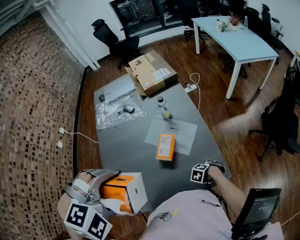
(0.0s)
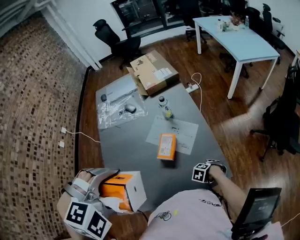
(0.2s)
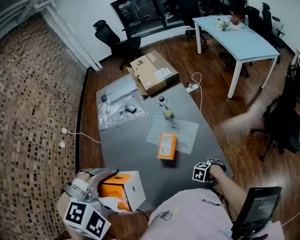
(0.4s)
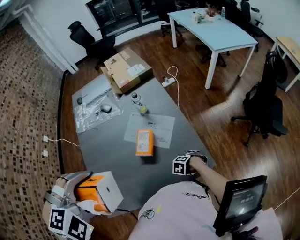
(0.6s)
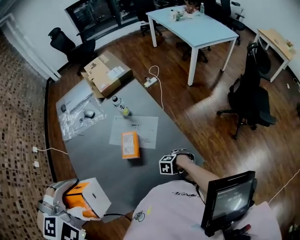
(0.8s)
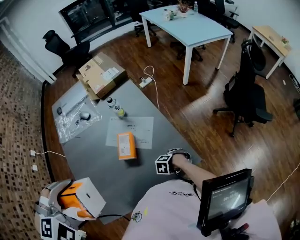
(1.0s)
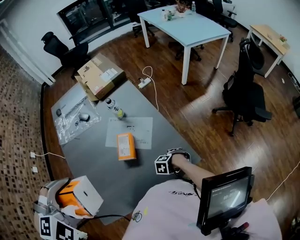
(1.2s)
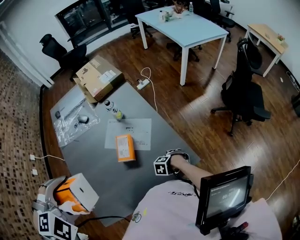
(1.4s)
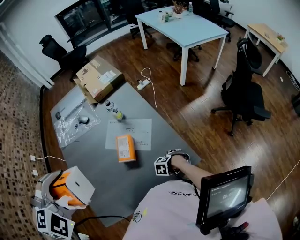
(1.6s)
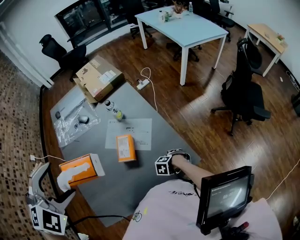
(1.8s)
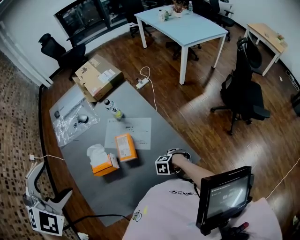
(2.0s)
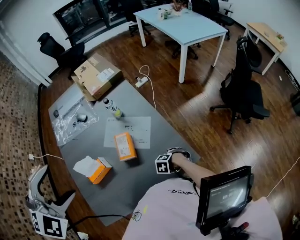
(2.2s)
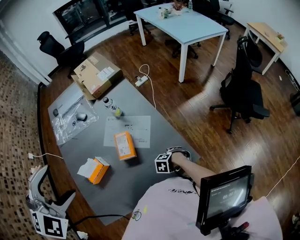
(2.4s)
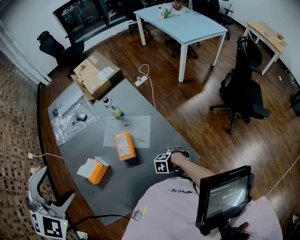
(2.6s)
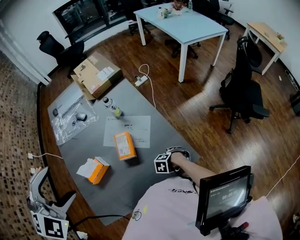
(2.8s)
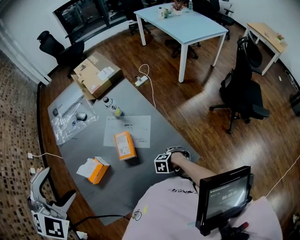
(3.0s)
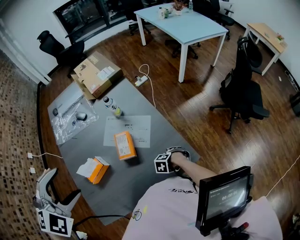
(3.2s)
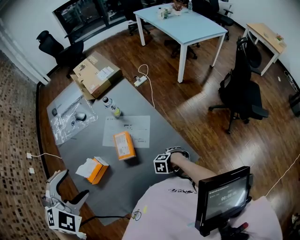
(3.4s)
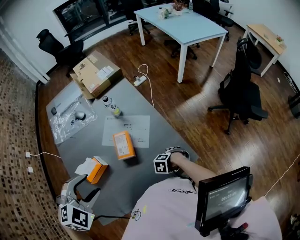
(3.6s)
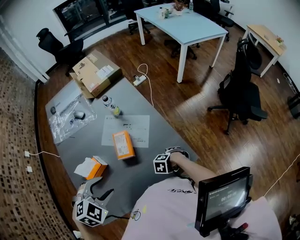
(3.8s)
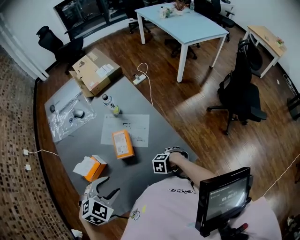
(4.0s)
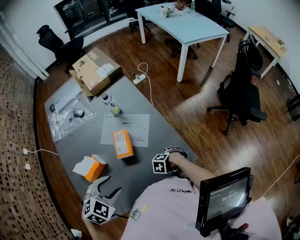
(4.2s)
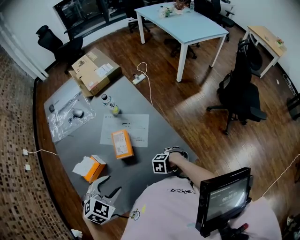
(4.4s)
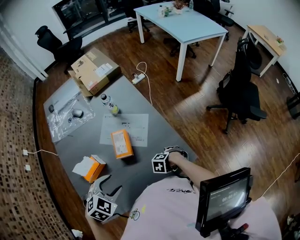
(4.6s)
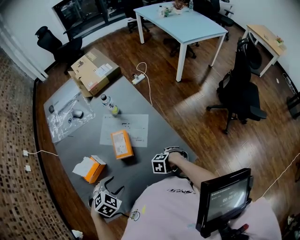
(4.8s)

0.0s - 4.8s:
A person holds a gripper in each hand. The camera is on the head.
0.0s - 1.6s: The left gripper ends up roughly 5 cm from where it was.
3.2s - 4.8s: The left gripper goes roughly 30 cm downward, and changes its angle by roughly 30 degrees.

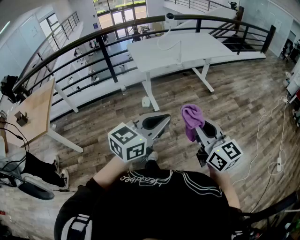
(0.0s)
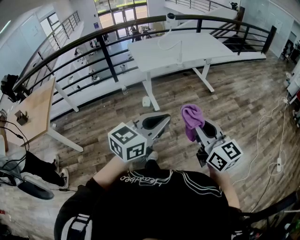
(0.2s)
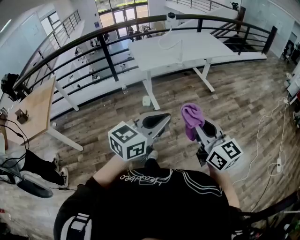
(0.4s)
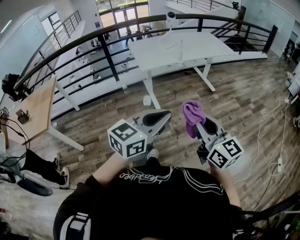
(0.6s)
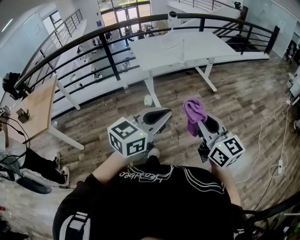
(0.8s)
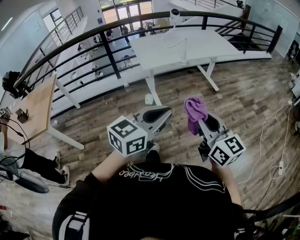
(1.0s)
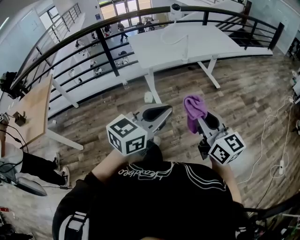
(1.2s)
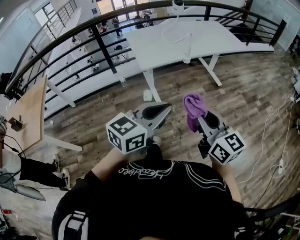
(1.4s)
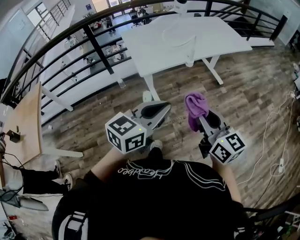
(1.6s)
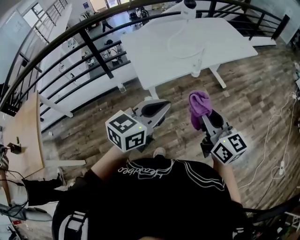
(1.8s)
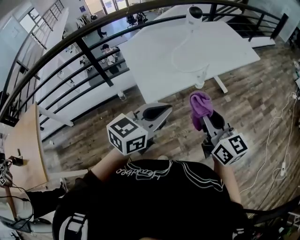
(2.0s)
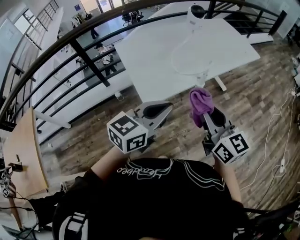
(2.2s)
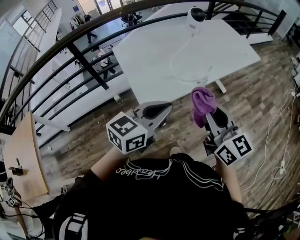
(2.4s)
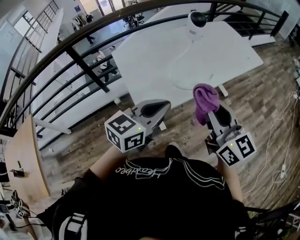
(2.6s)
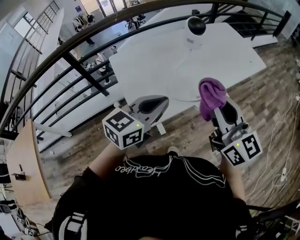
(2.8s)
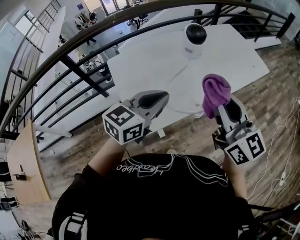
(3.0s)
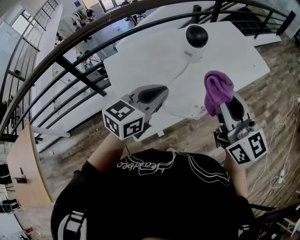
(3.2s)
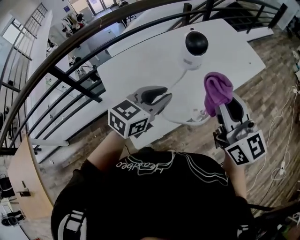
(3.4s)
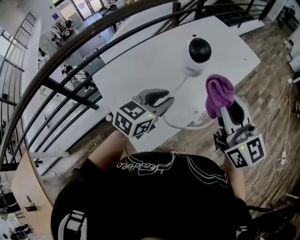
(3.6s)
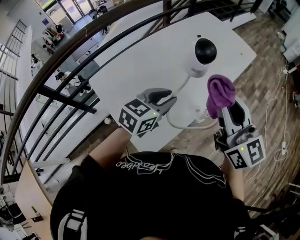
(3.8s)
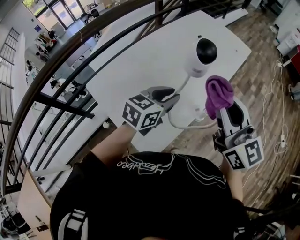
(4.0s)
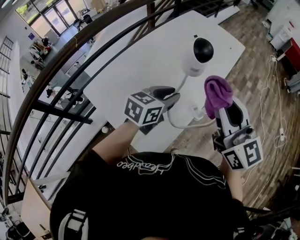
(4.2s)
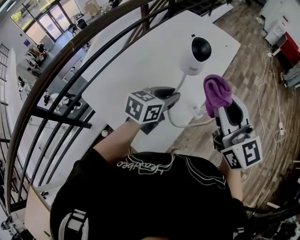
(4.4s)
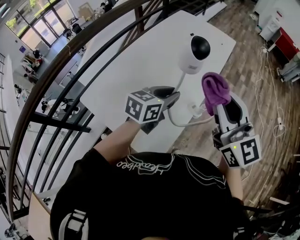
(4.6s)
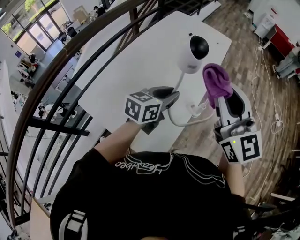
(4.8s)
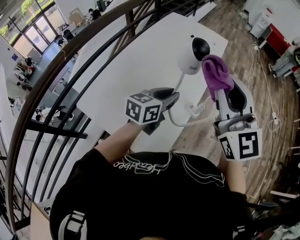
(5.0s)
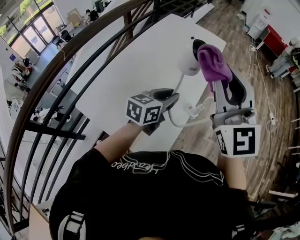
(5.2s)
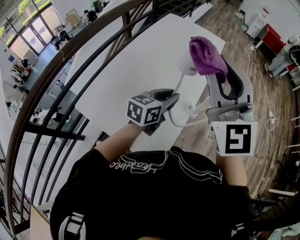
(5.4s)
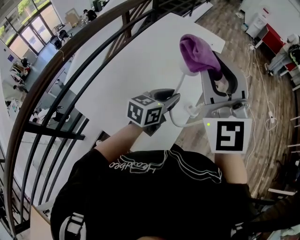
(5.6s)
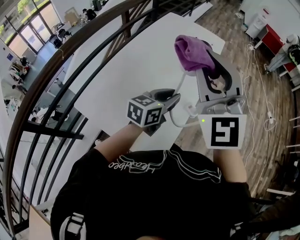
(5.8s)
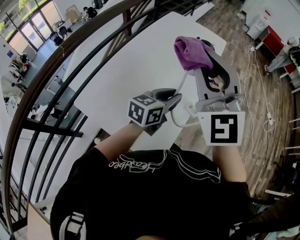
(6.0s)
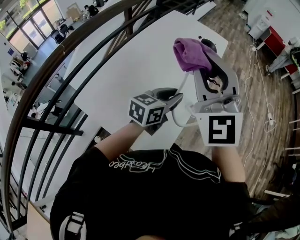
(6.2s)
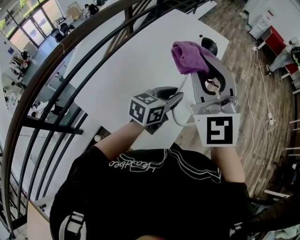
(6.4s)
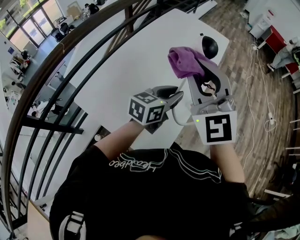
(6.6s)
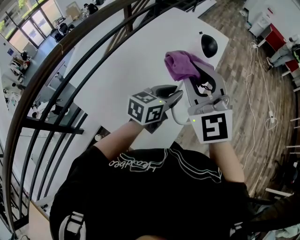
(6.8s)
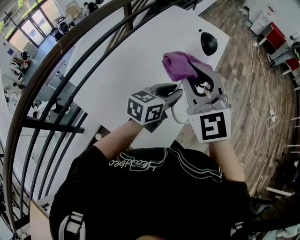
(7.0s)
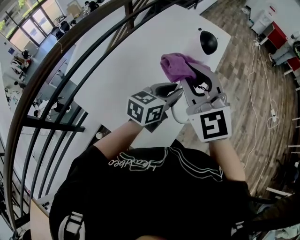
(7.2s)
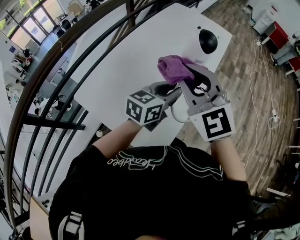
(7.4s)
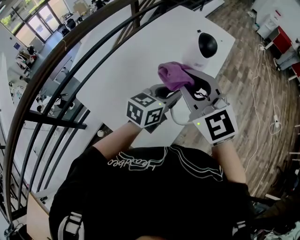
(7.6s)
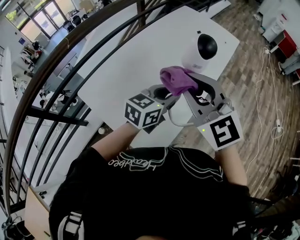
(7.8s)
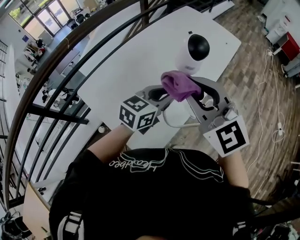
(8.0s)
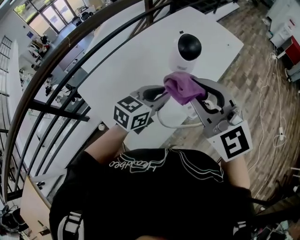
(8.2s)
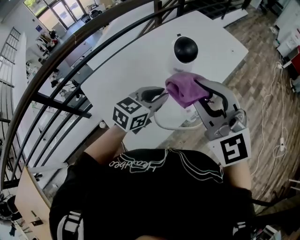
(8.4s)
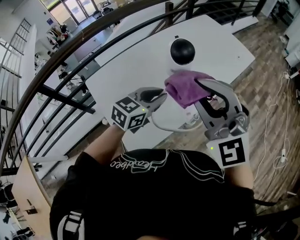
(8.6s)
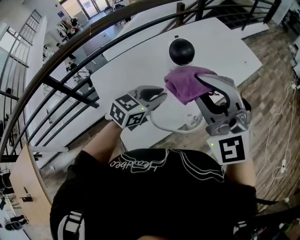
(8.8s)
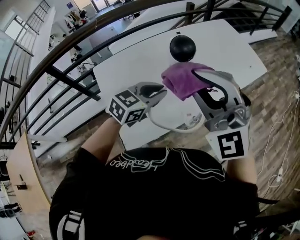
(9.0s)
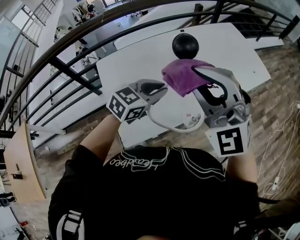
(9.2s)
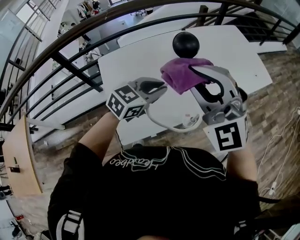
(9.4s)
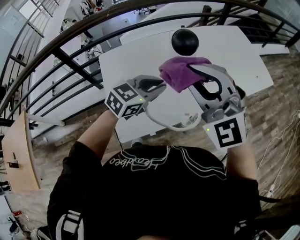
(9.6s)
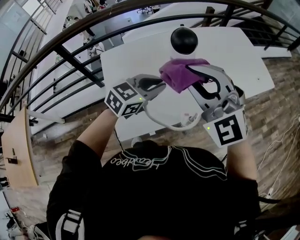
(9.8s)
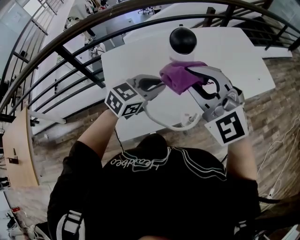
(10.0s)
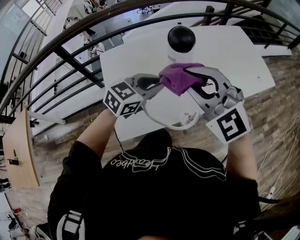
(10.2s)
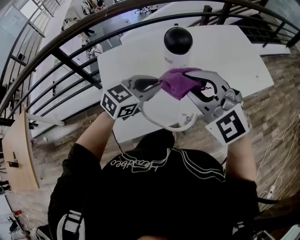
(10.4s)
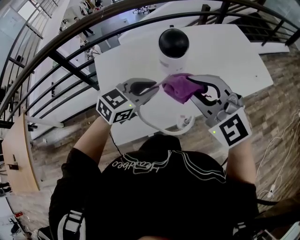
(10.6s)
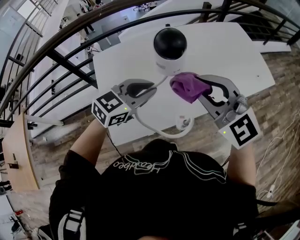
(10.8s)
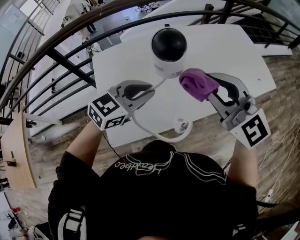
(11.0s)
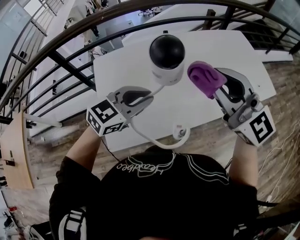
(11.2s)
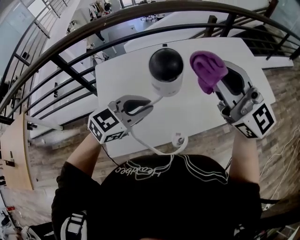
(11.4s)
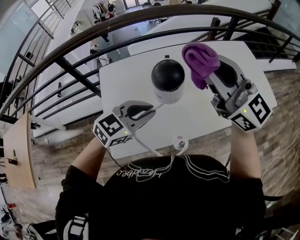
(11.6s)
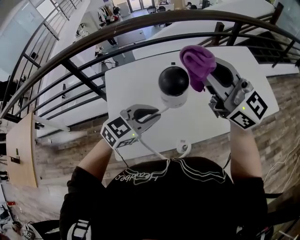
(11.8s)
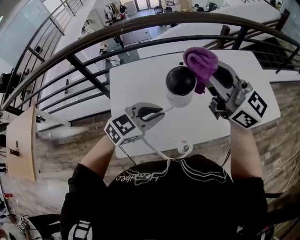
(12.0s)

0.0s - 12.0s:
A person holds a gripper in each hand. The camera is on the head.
0.0s - 1.6s: Both grippers travel together forward, some 30 cm.
1.6s - 3.0s: The two grippers travel together, forward, roughly 50 cm.
3.0s - 4.4s: The right gripper ends up approximately 10 cm from where it was, and swivels about 30 degrees. The left gripper shifts by roughly 15 cm, and rotates roughly 30 degrees.
4.4s - 6.0s: The right gripper heads to the left and upward, covering approximately 15 cm, and changes its angle by approximately 40 degrees.
6.0s - 7.6s: The right gripper travels downward by roughly 10 cm, and rotates about 30 degrees.
7.6s - 9.0s: The right gripper shifts by about 10 cm, and rotates some 40 degrees. Meanwhile the left gripper turns by approximately 20 degrees.
9.0s - 10.4s: The right gripper goes approximately 10 cm downward, and turns by about 20 degrees.
10.4s - 12.0s: The right gripper is displaced forward and upward by some 15 cm, and angles its fingers upward, by approximately 30 degrees.

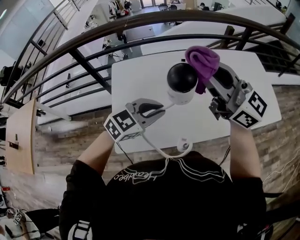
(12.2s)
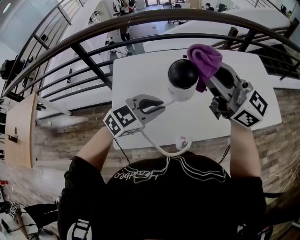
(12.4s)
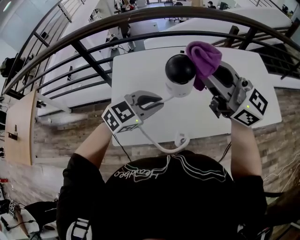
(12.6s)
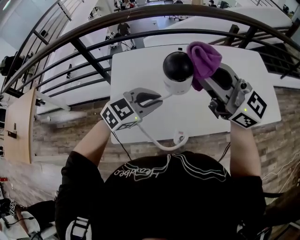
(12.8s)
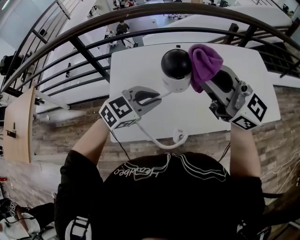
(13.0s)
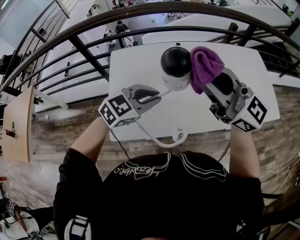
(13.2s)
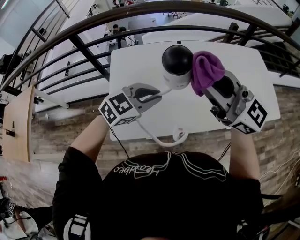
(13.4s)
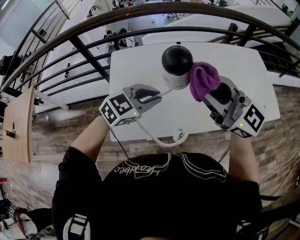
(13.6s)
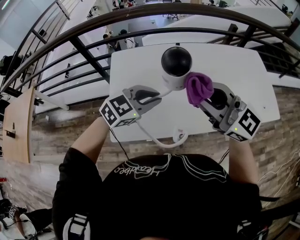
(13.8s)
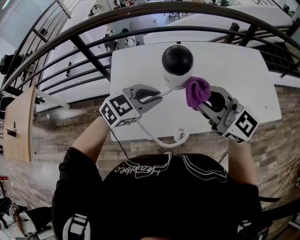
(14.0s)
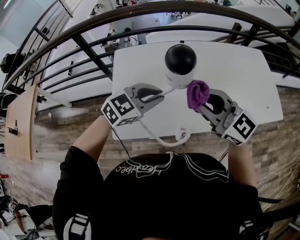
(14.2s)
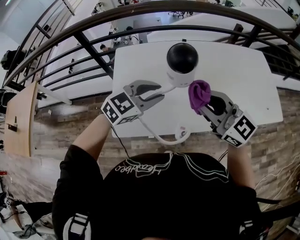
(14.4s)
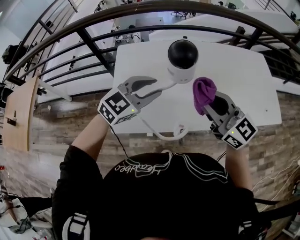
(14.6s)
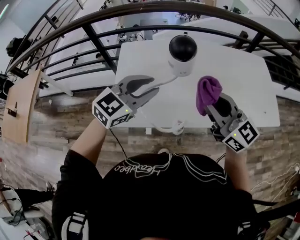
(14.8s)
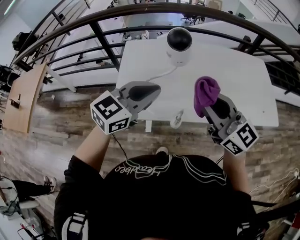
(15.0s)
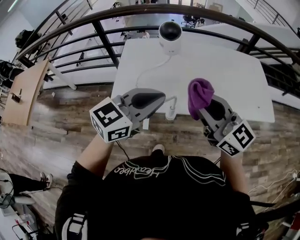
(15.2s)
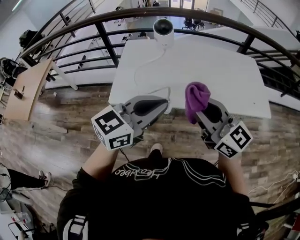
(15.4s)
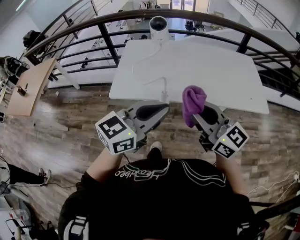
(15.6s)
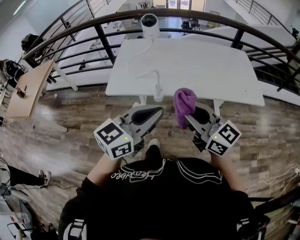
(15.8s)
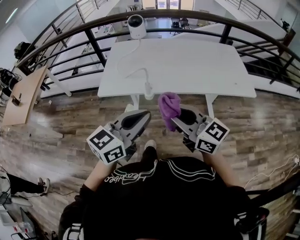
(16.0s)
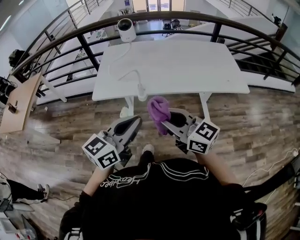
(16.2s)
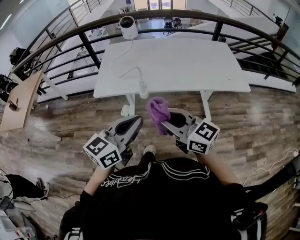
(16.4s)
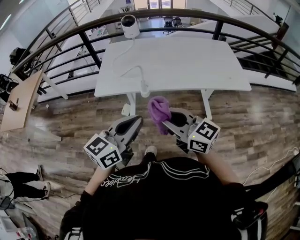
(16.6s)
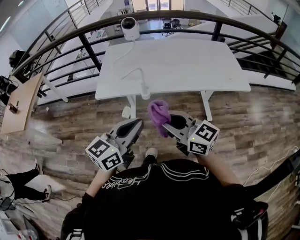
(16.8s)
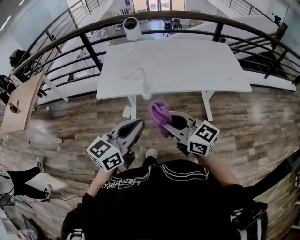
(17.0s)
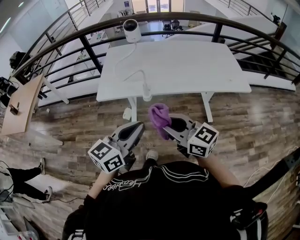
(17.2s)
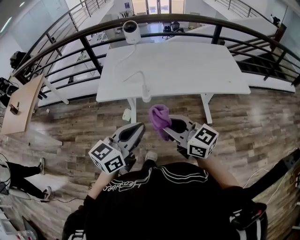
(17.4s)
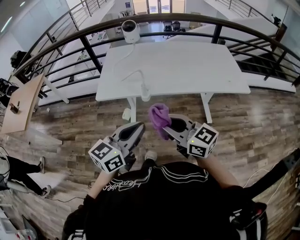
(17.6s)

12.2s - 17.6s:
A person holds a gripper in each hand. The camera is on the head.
12.2s - 13.6s: The right gripper travels backward by approximately 5 cm.
13.6s - 15.0s: The right gripper shifts approximately 10 cm backward, while the left gripper goes about 15 cm backward and upward, and changes its angle by some 30 degrees.
15.0s - 16.2s: The two grippers go roughly 30 cm backward. The left gripper swivels some 20 degrees.
16.2s - 17.6s: There are only small adjustments of the grippers.

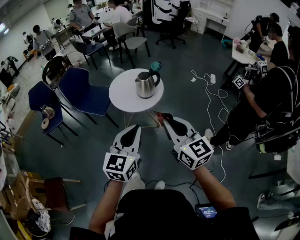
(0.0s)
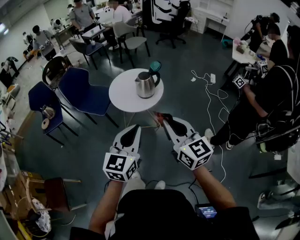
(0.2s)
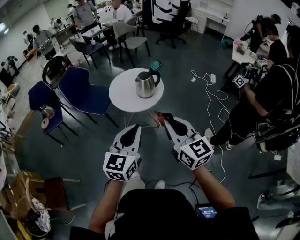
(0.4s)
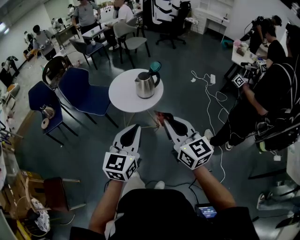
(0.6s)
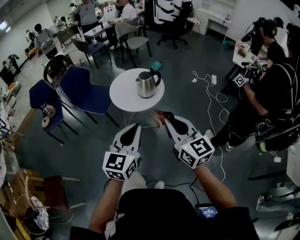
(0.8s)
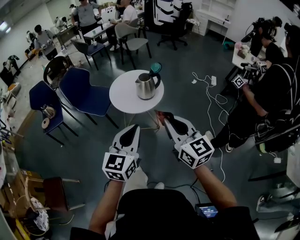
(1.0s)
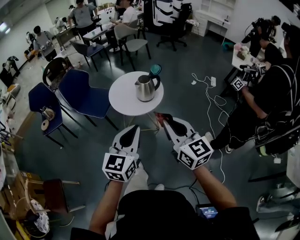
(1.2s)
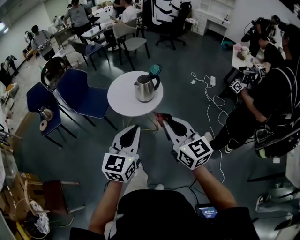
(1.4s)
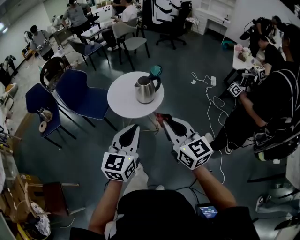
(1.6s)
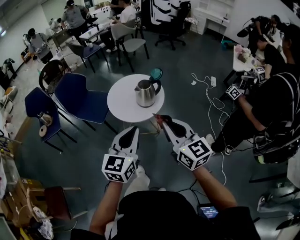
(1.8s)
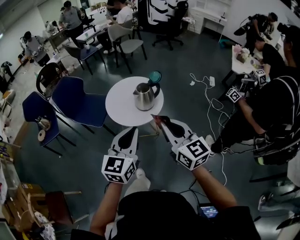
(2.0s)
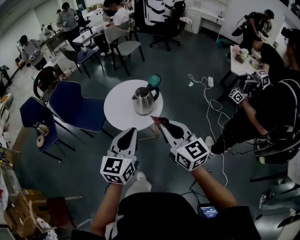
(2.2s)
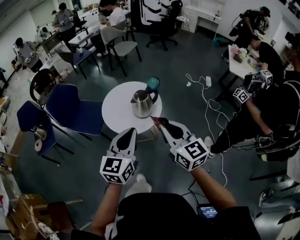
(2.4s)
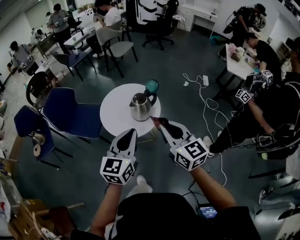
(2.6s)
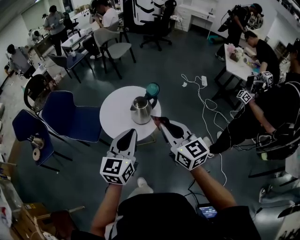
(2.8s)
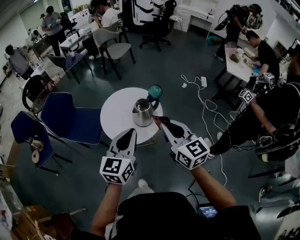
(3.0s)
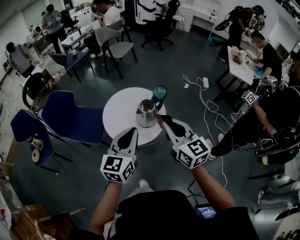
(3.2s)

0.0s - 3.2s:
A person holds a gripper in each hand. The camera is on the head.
0.0s - 1.6s: Both grippers travel together forward, roughly 5 cm.
1.6s - 3.2s: The grippers both shift forward by roughly 30 cm.
